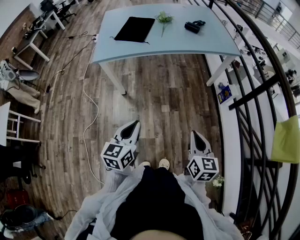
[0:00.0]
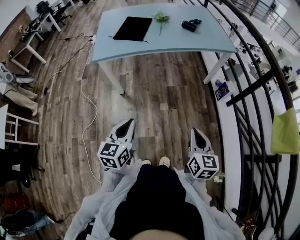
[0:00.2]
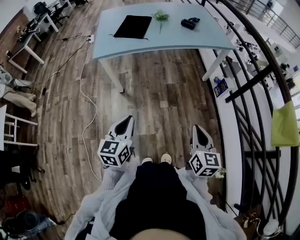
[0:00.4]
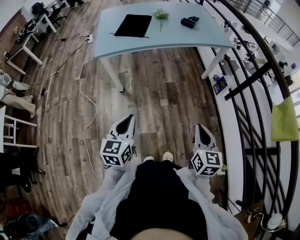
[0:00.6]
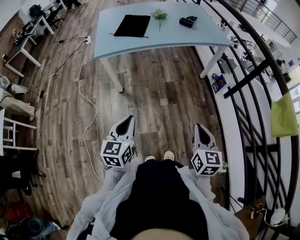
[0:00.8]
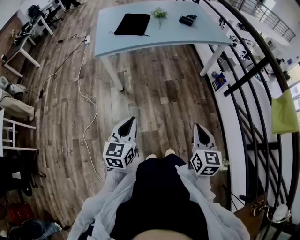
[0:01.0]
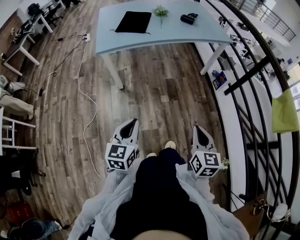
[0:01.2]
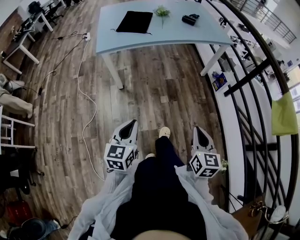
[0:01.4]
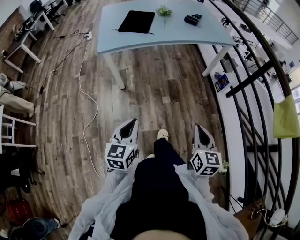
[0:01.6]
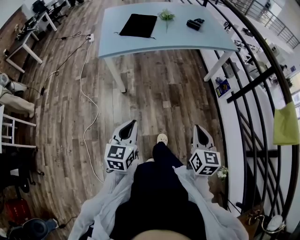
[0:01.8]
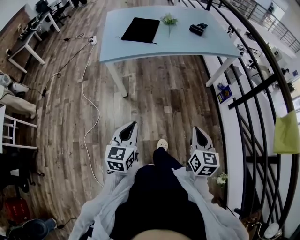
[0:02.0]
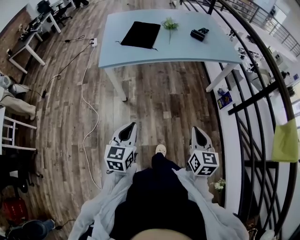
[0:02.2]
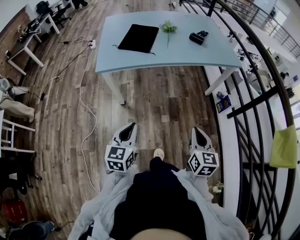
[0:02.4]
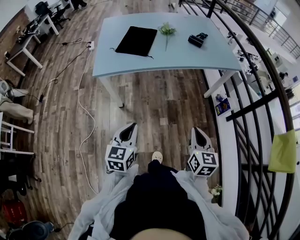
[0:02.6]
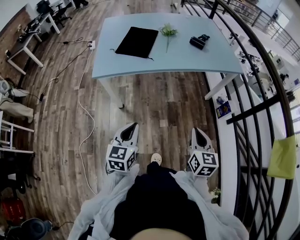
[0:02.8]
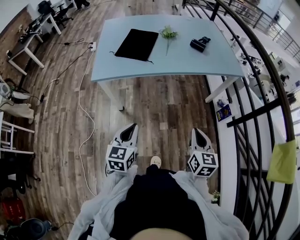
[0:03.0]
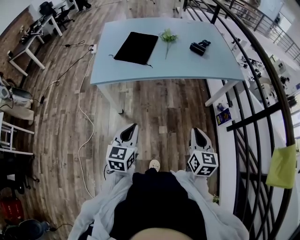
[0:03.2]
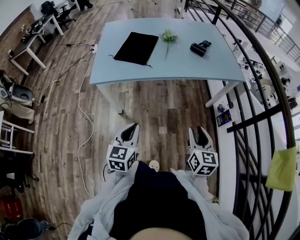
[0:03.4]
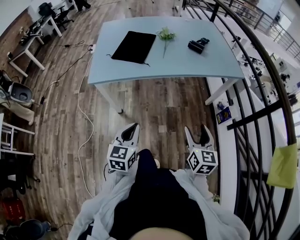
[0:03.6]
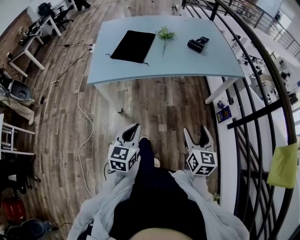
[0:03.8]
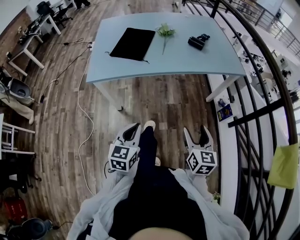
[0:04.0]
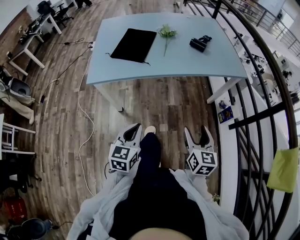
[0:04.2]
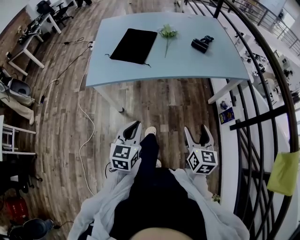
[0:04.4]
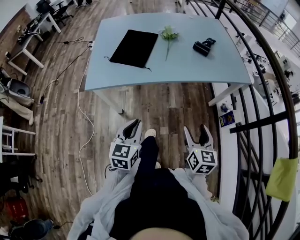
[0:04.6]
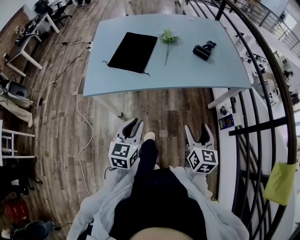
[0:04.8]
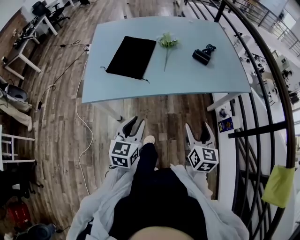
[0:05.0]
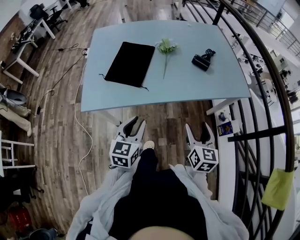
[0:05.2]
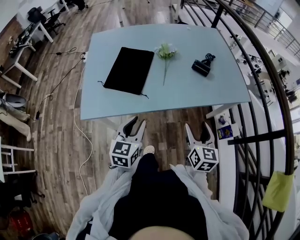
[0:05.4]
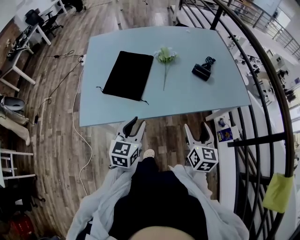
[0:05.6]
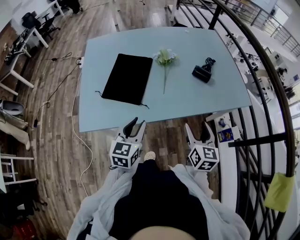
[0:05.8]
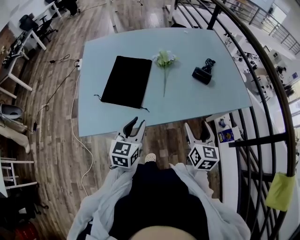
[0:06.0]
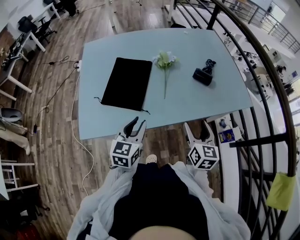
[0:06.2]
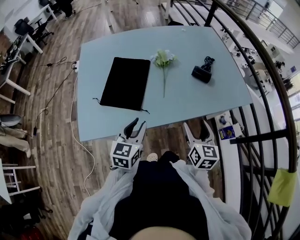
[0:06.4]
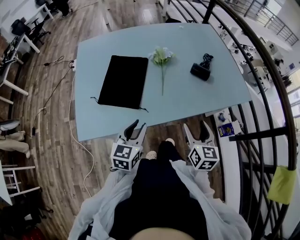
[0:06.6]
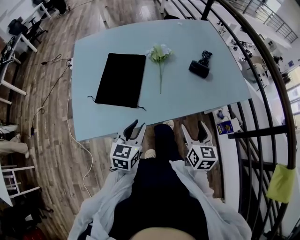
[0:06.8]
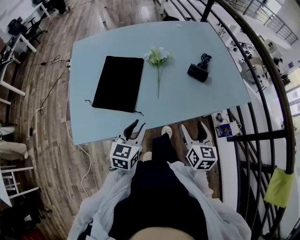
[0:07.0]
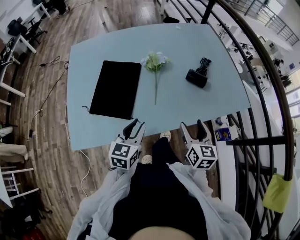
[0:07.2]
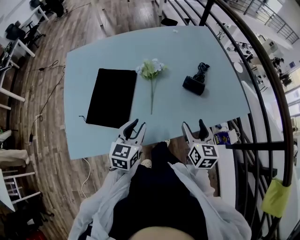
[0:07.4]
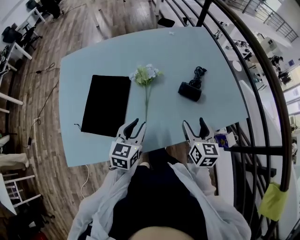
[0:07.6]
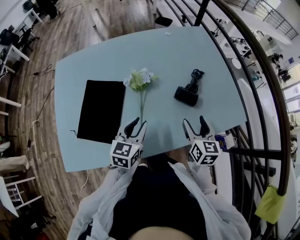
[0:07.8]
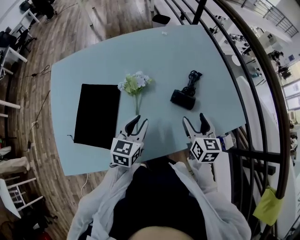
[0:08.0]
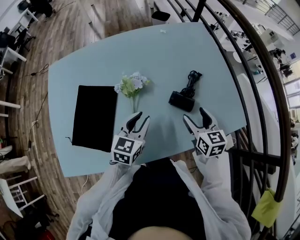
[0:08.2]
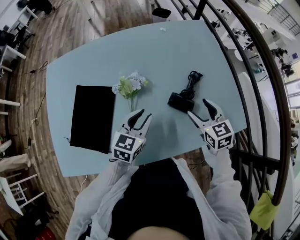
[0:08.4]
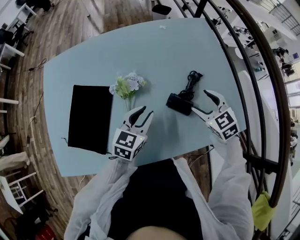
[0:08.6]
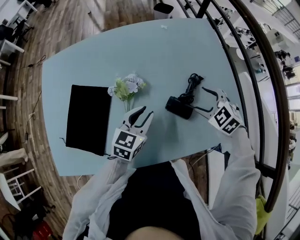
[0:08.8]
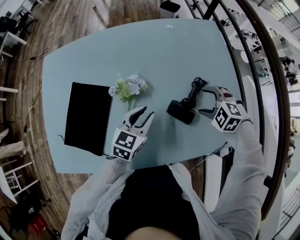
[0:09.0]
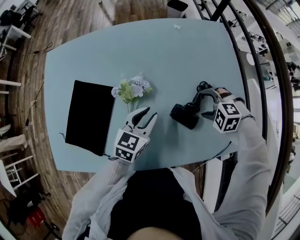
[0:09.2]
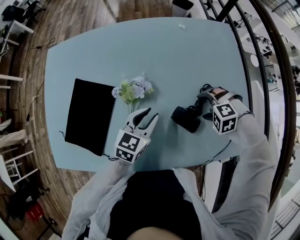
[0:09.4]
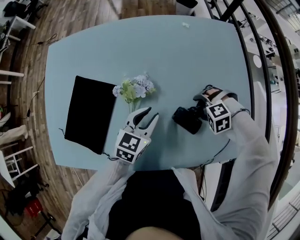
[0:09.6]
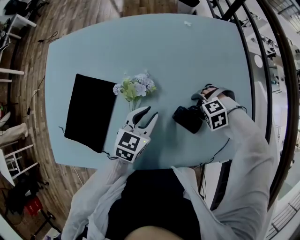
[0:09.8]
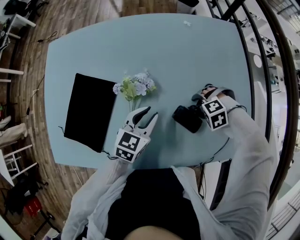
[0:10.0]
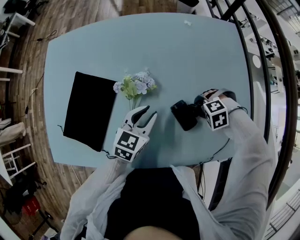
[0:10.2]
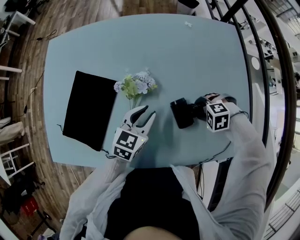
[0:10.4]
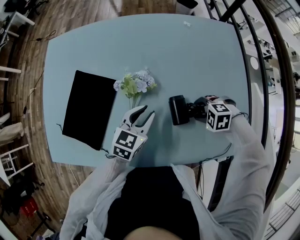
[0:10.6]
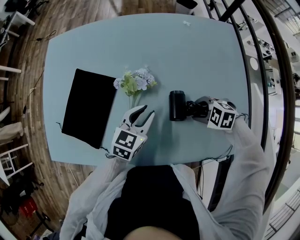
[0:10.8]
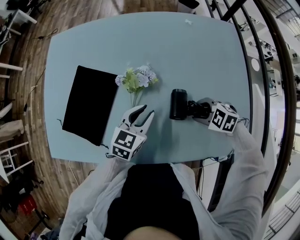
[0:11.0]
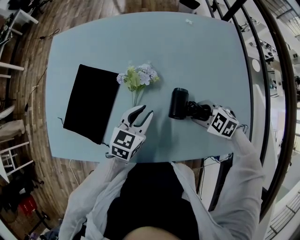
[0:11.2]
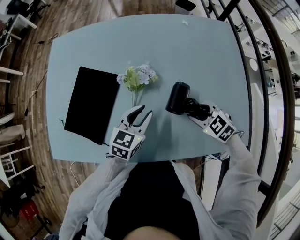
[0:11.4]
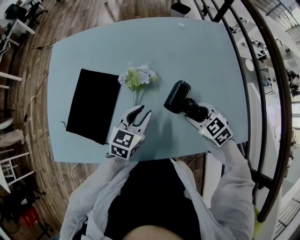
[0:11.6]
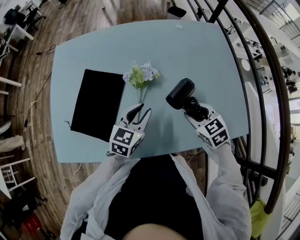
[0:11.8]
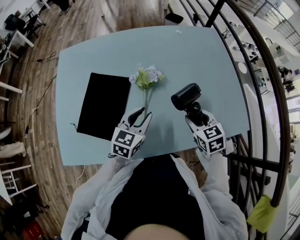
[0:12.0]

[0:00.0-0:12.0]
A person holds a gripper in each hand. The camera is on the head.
0:00.0 to 0:01.6: The right gripper travels backward and to the left by some 10 cm. Meanwhile the left gripper is displaced to the left and backward by roughly 10 cm.
0:01.6 to 0:03.0: The two grippers go approximately 20 cm forward.
0:03.0 to 0:04.4: The two grippers go roughly 5 cm forward. The right gripper opens.
0:04.4 to 0:06.0: Both grippers travel together forward, roughly 25 cm. The left gripper opens up.
0:06.0 to 0:07.6: Both grippers travel together forward, some 15 cm.
0:07.6 to 0:09.0: The right gripper travels forward by some 20 cm, and rolls counterclockwise, seen from behind, by approximately 70 degrees; the left gripper travels forward and to the right by some 20 cm.
0:09.0 to 0:10.4: The right gripper travels downward by roughly 10 cm, rotates approximately 30 degrees, and closes up.
0:10.4 to 0:12.0: The left gripper ends up roughly 10 cm from where it was. Meanwhile the right gripper moves approximately 15 cm, and angles its fingers upward, by some 30 degrees.

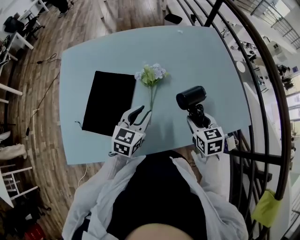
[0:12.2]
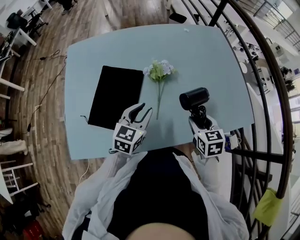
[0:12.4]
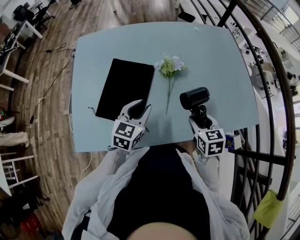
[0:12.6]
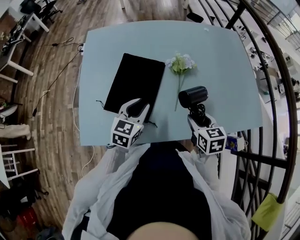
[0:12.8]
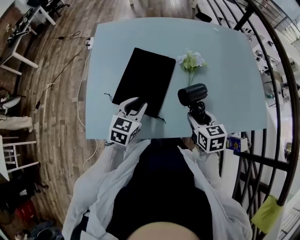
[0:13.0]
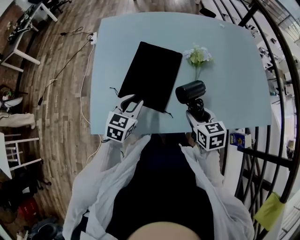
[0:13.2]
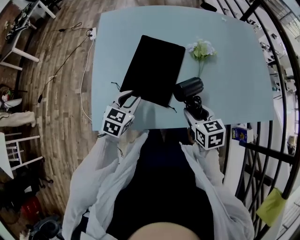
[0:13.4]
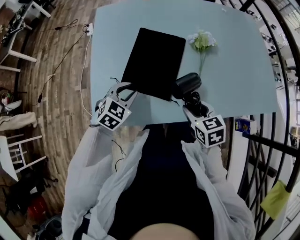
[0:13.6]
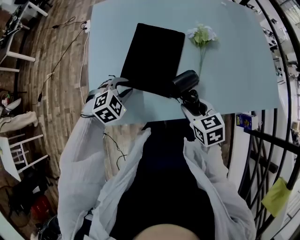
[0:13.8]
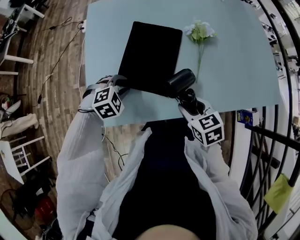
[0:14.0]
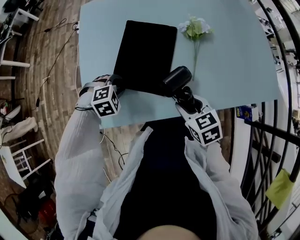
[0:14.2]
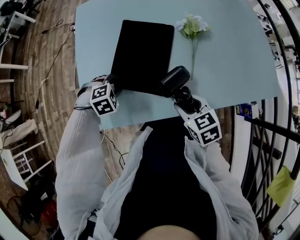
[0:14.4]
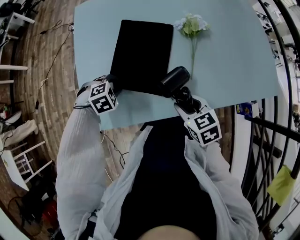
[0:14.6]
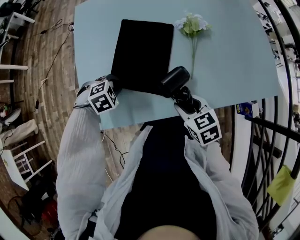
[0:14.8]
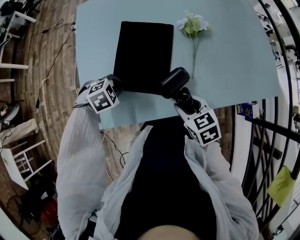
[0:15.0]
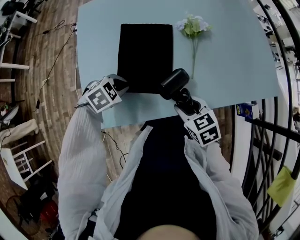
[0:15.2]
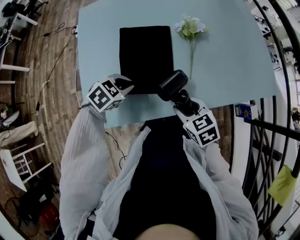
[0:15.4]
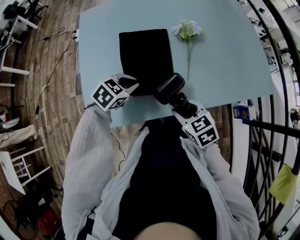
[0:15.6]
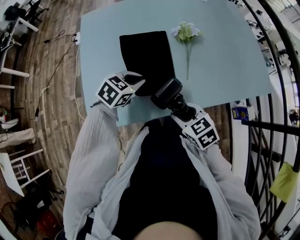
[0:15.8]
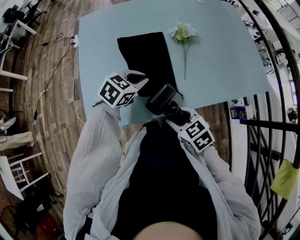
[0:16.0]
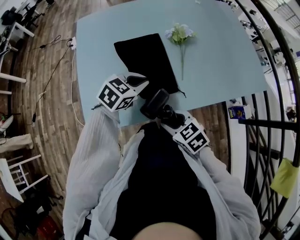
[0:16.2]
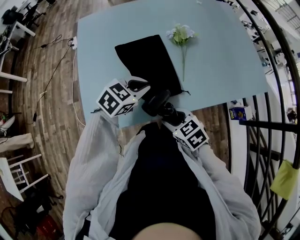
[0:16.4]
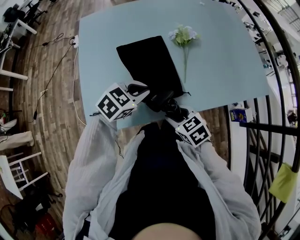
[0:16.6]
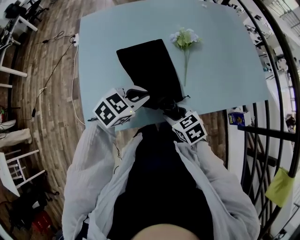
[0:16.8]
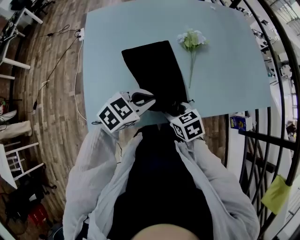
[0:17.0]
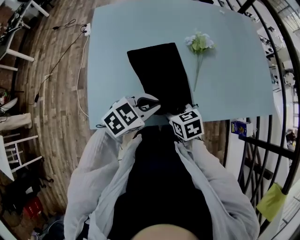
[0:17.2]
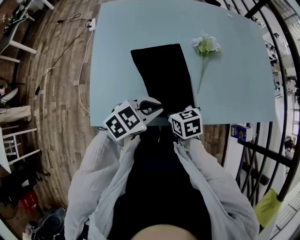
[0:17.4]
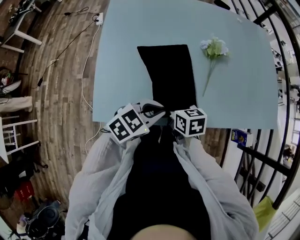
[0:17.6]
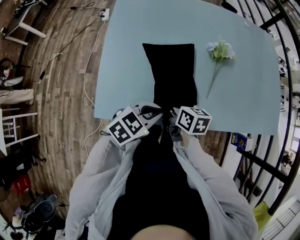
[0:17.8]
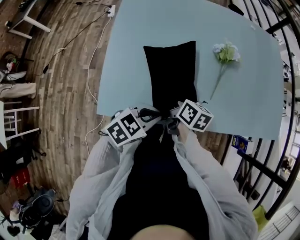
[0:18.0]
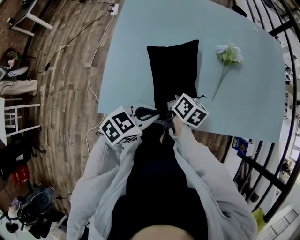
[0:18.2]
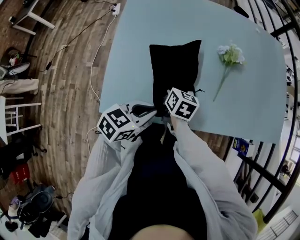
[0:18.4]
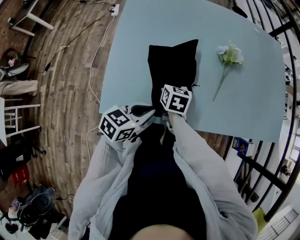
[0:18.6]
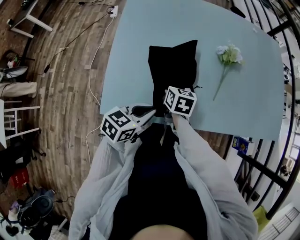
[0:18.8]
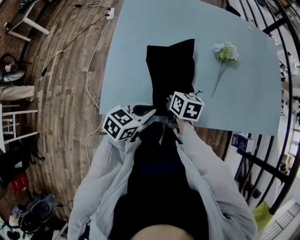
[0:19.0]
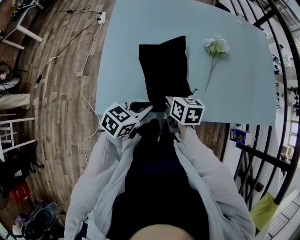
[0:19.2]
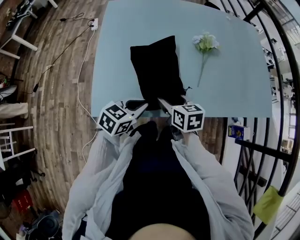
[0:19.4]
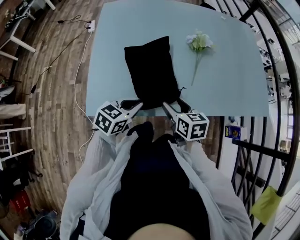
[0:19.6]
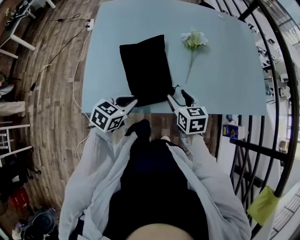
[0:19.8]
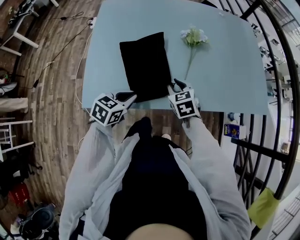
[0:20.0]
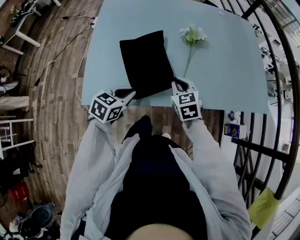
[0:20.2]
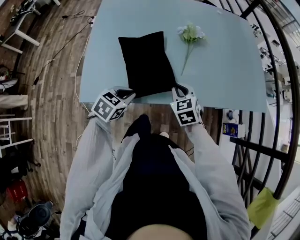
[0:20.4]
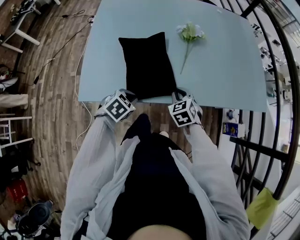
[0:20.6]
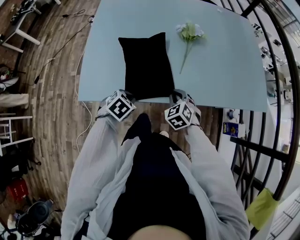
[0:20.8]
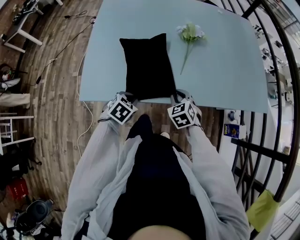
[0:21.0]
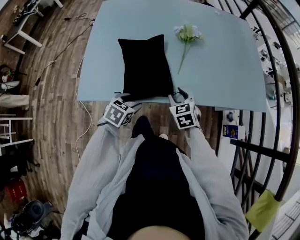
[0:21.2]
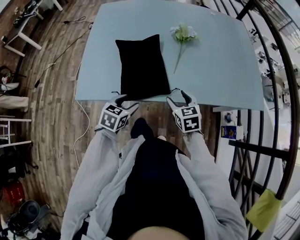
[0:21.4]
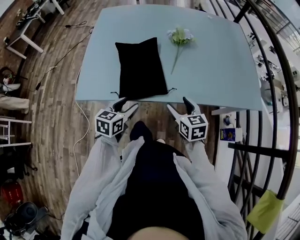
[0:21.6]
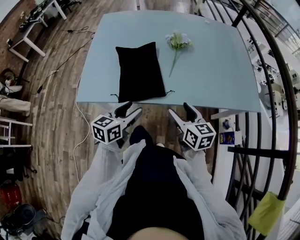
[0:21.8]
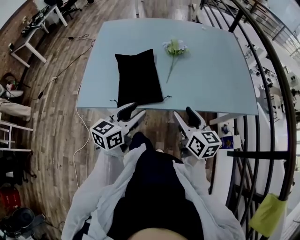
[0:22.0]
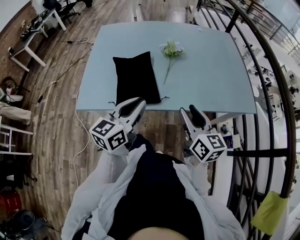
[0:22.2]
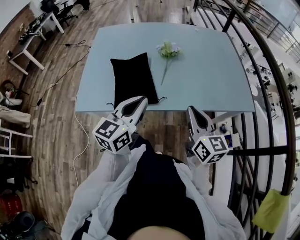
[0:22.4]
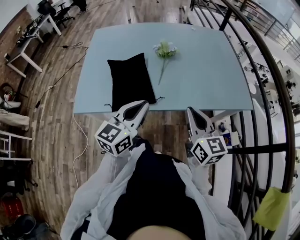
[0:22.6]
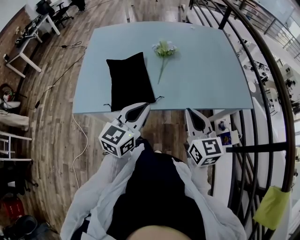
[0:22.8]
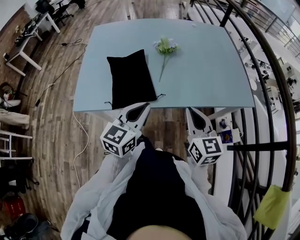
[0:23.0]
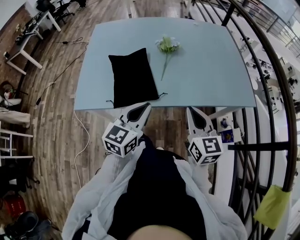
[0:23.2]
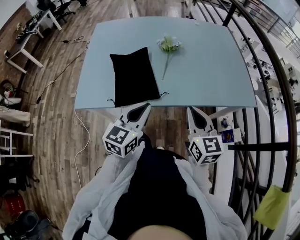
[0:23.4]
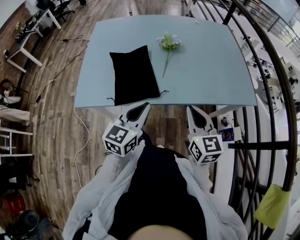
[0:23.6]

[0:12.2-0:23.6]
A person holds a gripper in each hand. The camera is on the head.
0:12.2 to 0:13.6: The right gripper moves to the left and backward, roughly 25 cm, while the left gripper shifts roughly 25 cm to the left, and changes its angle by roughly 30 degrees.
0:13.6 to 0:15.0: The left gripper moves downward, about 5 cm, and rotates about 40 degrees.
0:15.0 to 0:16.4: The right gripper travels backward by about 5 cm; the left gripper shifts roughly 20 cm to the right and upward, and points its fingers roughly 30 degrees further upward.
0:16.4 to 0:17.8: The left gripper shifts roughly 5 cm backward, while the right gripper is displaced forward and to the left by some 15 cm, and turns by about 40 degrees.
0:17.8 to 0:19.4: The left gripper ends up roughly 5 cm from where it was.
0:19.4 to 0:20.8: The left gripper is displaced downward by some 10 cm, and angles its fingers downward, by some 30 degrees. Meanwhile the right gripper shifts some 15 cm to the right and downward, twists approximately 50 degrees counterclockwise, seen from behind, and closes its fingers.
0:20.8 to 0:22.2: The left gripper travels upward and to the right by approximately 25 cm, points its fingers approximately 60 degrees further upward, and opens, then closes again. Meanwhile the right gripper shifts some 25 cm upward, to the right and backward, tips its fingers upward by approximately 40 degrees, and opens.
0:22.2 to 0:23.6: The left gripper ends up roughly 5 cm from where it was, while the right gripper closes up.
